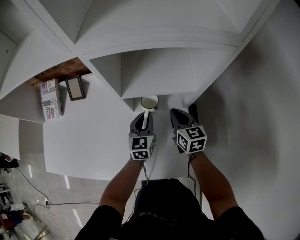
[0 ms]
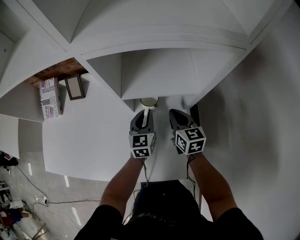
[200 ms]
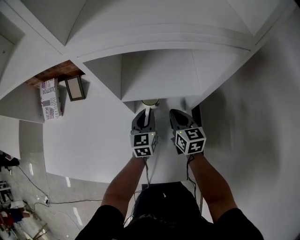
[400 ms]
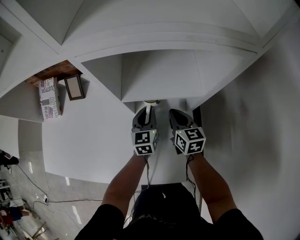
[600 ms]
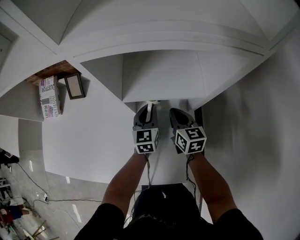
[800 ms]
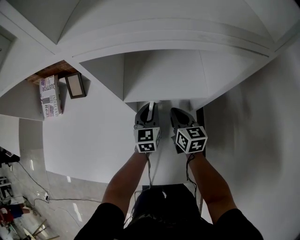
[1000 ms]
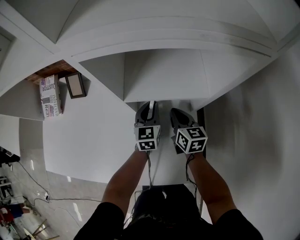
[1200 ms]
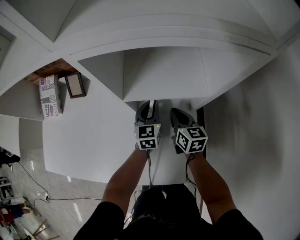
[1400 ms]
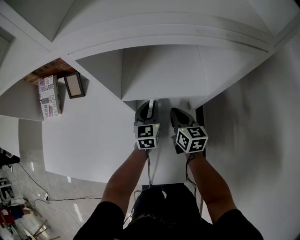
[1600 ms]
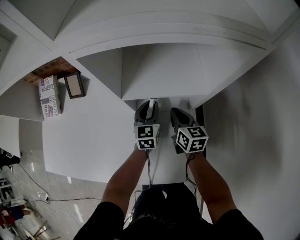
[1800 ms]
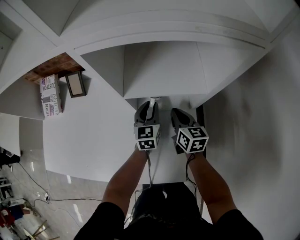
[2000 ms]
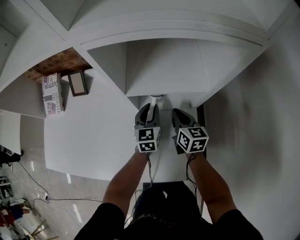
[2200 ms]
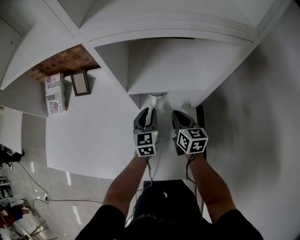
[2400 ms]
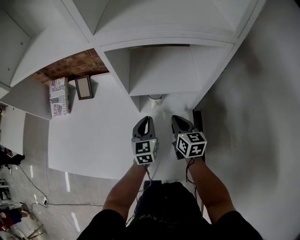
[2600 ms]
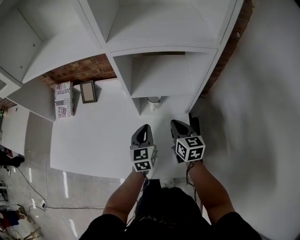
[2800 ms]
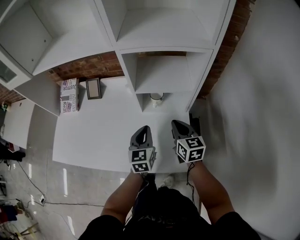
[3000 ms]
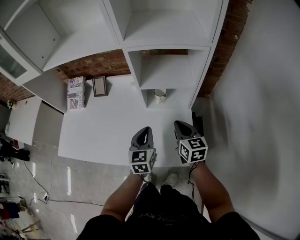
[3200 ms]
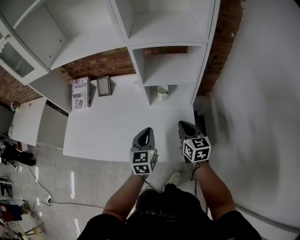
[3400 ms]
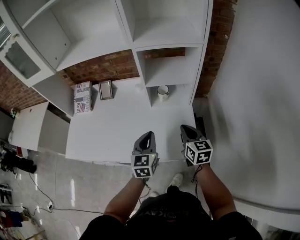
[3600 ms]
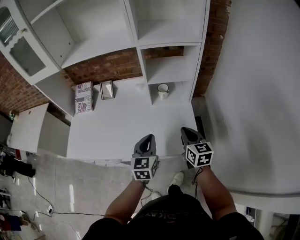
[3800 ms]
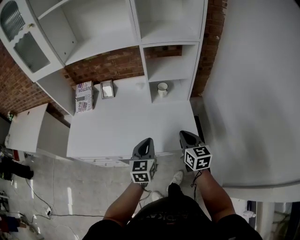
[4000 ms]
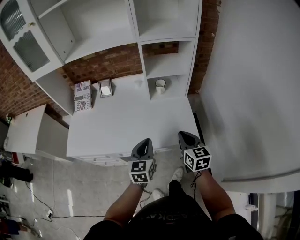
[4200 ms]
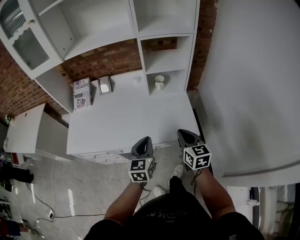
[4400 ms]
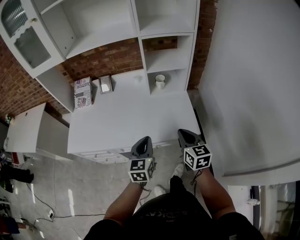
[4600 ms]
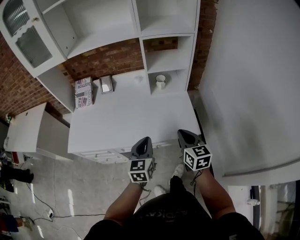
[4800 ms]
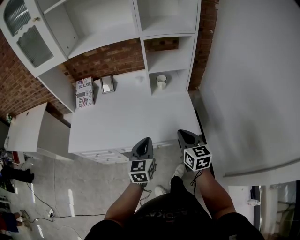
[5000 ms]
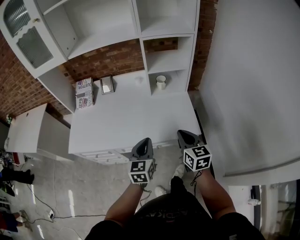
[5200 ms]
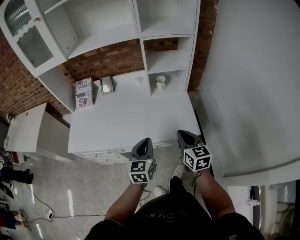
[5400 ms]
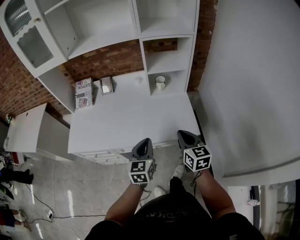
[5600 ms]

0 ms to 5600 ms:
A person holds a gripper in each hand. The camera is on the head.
0 ms to 1400 ms: The right gripper ends up some 5 cm from where it was; the left gripper shifts some 5 cm forward.
1400 ms to 2800 ms: The two grippers go some 15 cm backward and upward.
2800 ms to 4200 ms: The right gripper shifts roughly 30 cm backward, while the left gripper shifts about 30 cm backward and to the left.
4200 ms to 5600 ms: The grippers stay close to where they were, moving slightly.

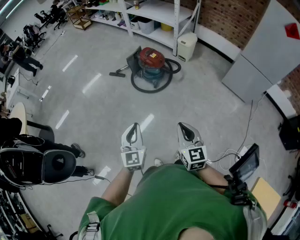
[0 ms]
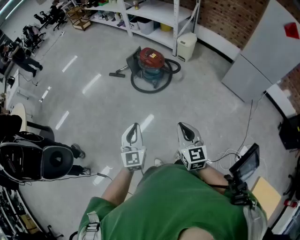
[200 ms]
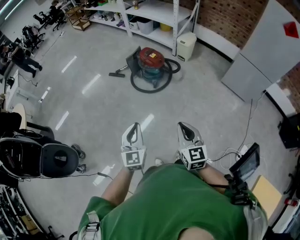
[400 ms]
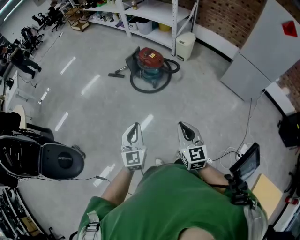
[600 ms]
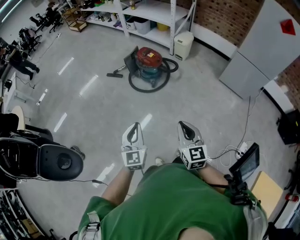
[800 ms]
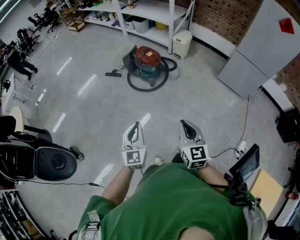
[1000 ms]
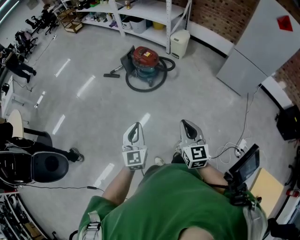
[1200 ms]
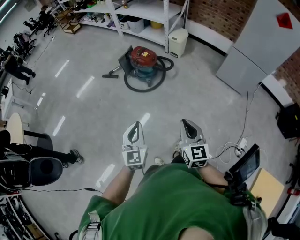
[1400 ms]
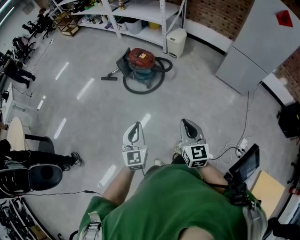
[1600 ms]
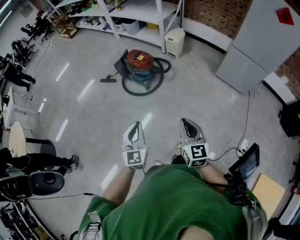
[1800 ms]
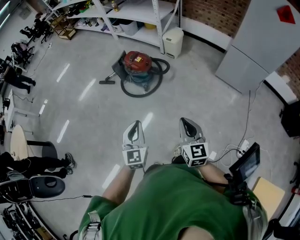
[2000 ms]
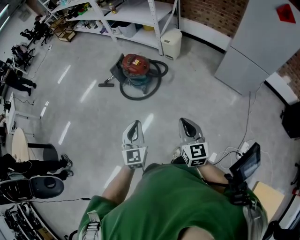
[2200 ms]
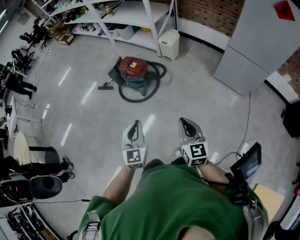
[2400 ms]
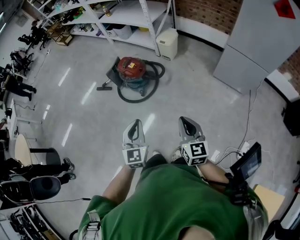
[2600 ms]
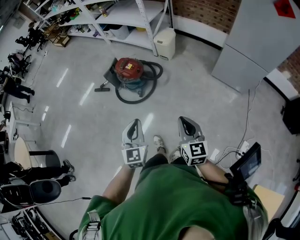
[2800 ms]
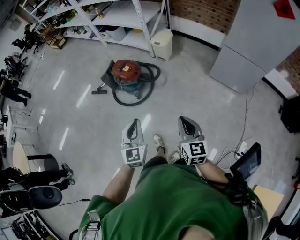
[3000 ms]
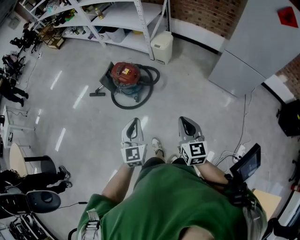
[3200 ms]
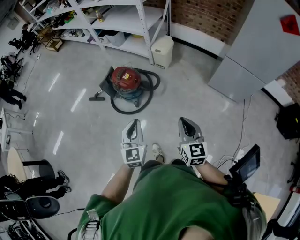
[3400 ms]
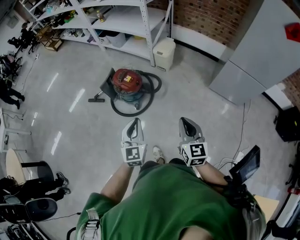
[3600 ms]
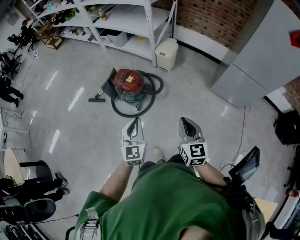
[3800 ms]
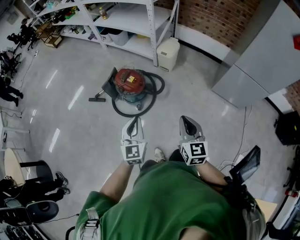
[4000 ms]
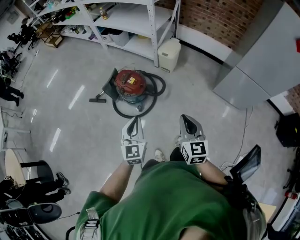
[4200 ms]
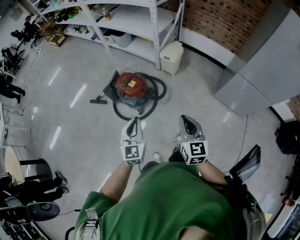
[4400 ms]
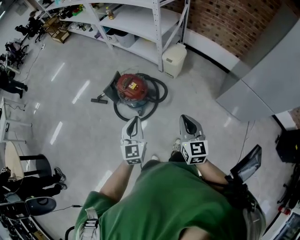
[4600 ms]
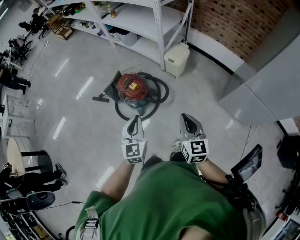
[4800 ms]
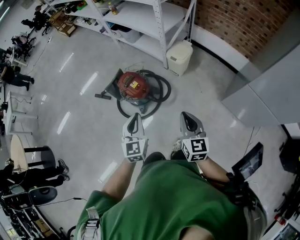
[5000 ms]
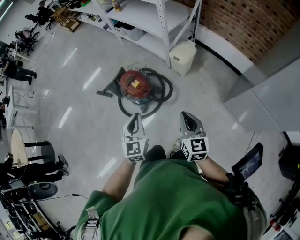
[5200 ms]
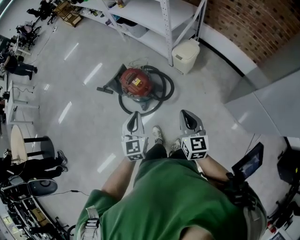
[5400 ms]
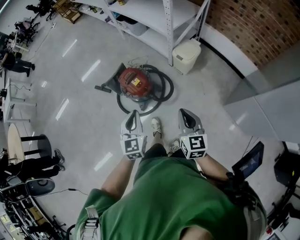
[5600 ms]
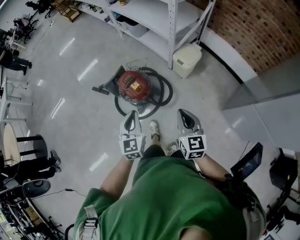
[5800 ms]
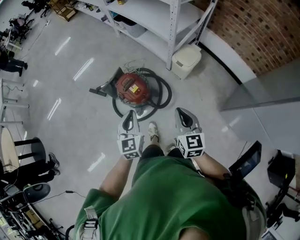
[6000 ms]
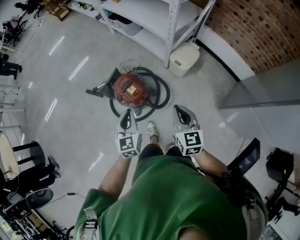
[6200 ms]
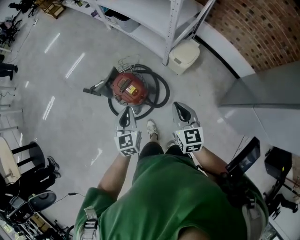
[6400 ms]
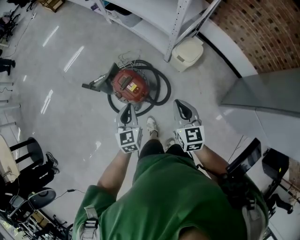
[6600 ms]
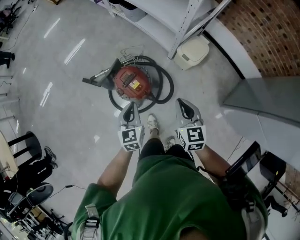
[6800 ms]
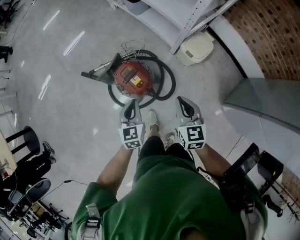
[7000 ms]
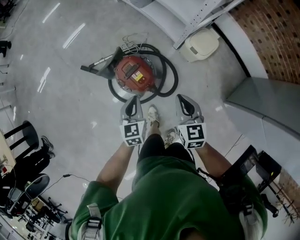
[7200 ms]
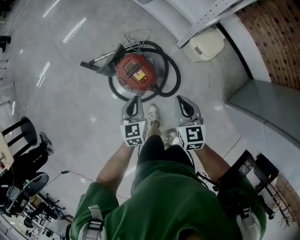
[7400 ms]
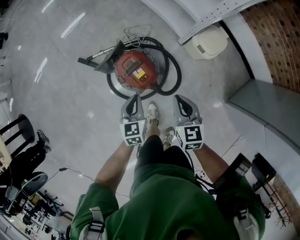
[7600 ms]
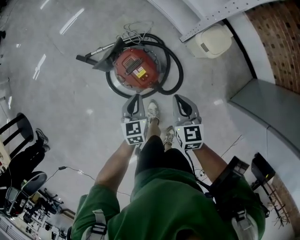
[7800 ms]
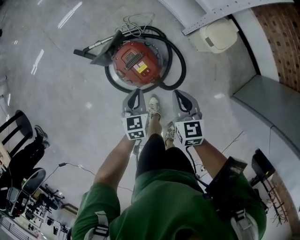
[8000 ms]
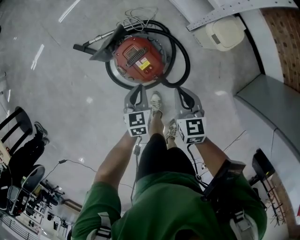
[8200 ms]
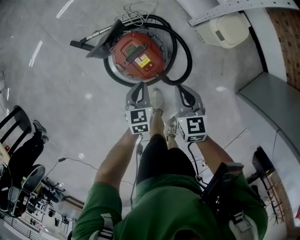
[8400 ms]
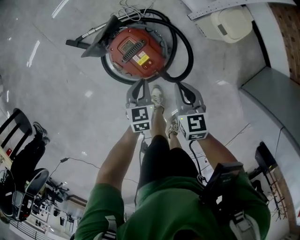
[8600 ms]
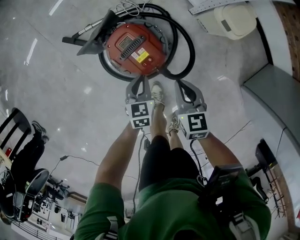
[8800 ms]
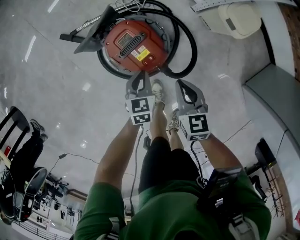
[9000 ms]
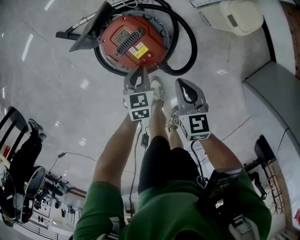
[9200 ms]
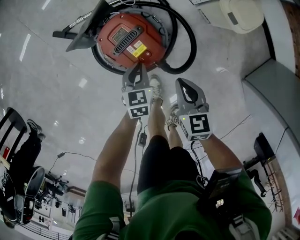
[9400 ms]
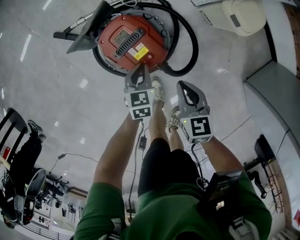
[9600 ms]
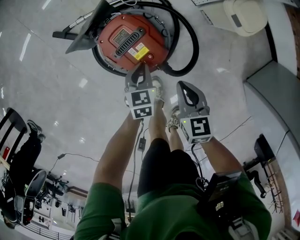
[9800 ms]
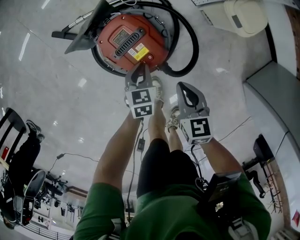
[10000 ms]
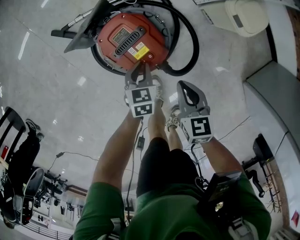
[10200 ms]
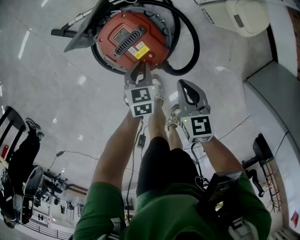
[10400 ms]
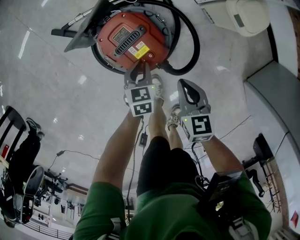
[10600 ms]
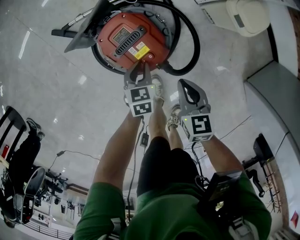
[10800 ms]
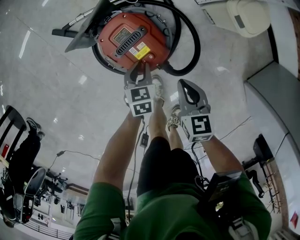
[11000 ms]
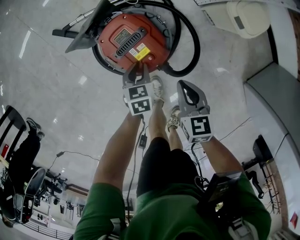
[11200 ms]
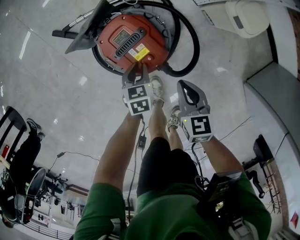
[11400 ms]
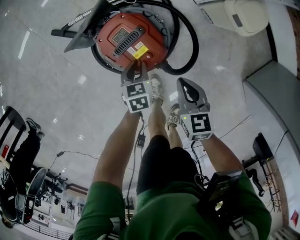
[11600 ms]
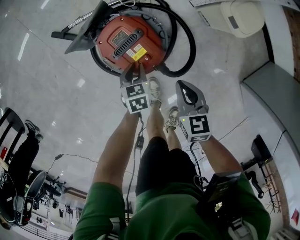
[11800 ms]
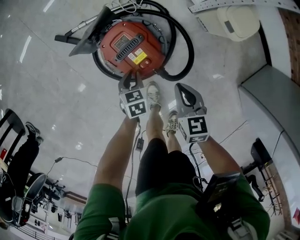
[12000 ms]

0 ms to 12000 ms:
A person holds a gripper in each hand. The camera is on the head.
0 ms to 1600 ms: The grippers both shift to the right by about 5 cm.
1600 ms to 3000 ms: Both grippers move forward and to the right, approximately 25 cm.
3000 ms to 4400 ms: Both grippers move forward, approximately 20 cm.
4400 ms to 6000 ms: Both grippers travel together forward, about 25 cm.
6000 ms to 7600 ms: The left gripper moves downward and forward, approximately 25 cm, and turns by approximately 20 degrees. The right gripper heads forward, downward and to the left, covering roughly 25 cm.
7600 ms to 9000 ms: Both grippers move downward, some 20 cm.
9000 ms to 10400 ms: The left gripper moves downward, approximately 5 cm.
10400 ms to 12000 ms: The grippers make only small movements.

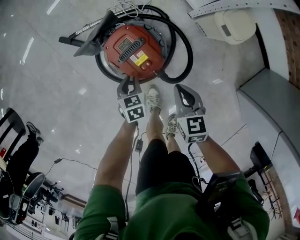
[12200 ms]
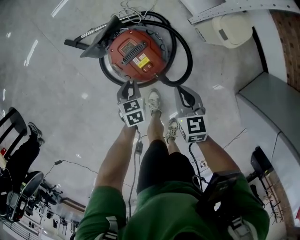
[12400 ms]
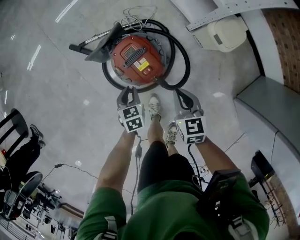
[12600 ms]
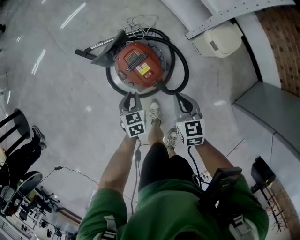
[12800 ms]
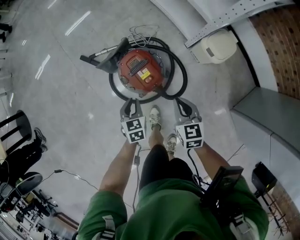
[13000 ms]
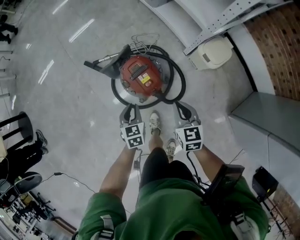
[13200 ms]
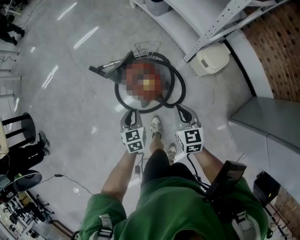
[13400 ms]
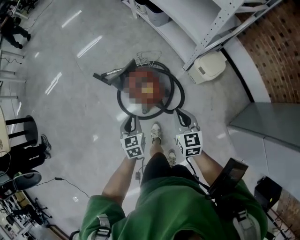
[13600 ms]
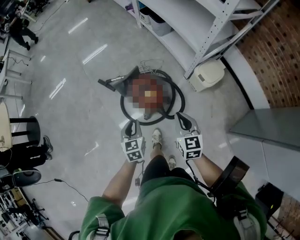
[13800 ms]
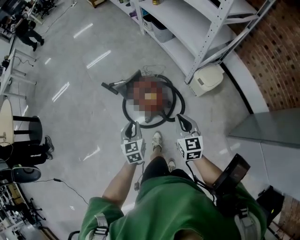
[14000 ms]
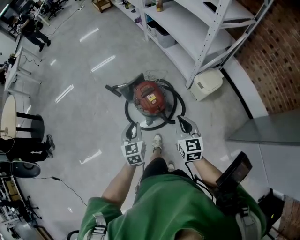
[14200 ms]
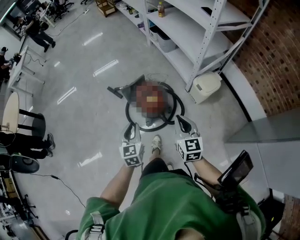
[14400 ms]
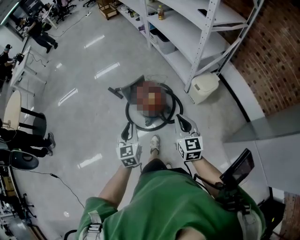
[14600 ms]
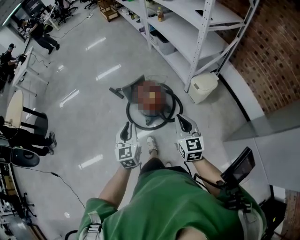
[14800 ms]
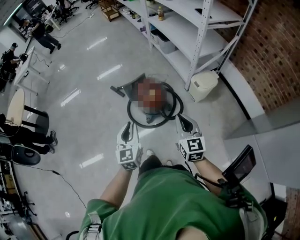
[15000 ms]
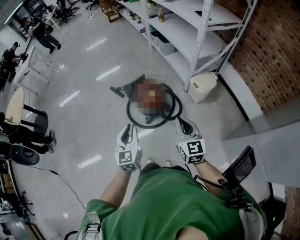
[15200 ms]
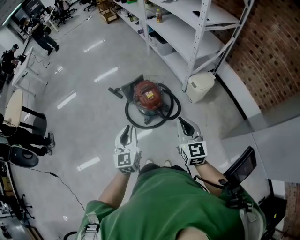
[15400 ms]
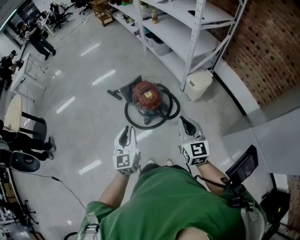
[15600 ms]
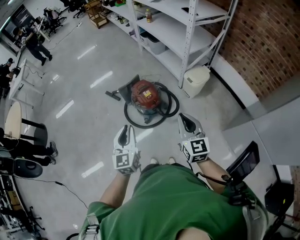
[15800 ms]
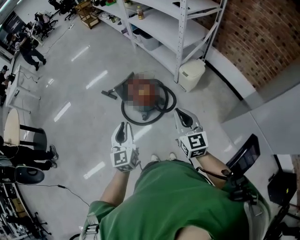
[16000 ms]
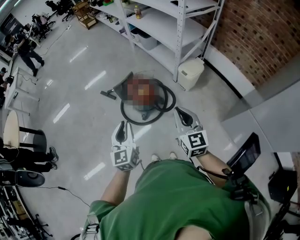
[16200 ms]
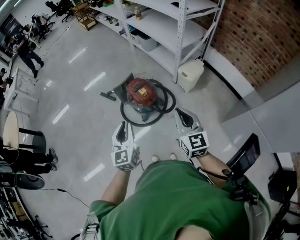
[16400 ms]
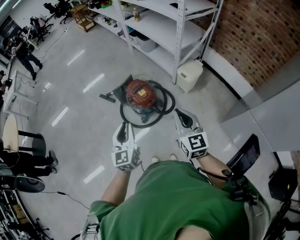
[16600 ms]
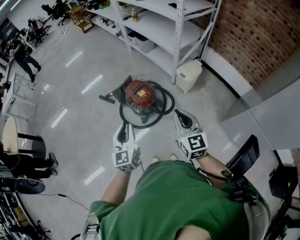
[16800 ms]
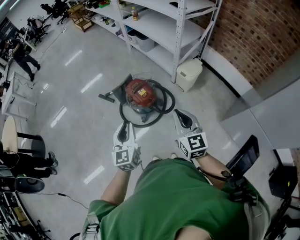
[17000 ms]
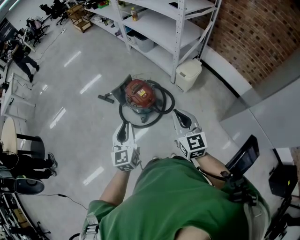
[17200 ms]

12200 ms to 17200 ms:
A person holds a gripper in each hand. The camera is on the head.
12200 ms to 13800 ms: Both grippers move upward, about 30 cm. The left gripper changes its angle by about 30 degrees. Meanwhile the right gripper changes its angle by about 20 degrees.
13800 ms to 15600 ms: Both grippers move backward and upward, roughly 30 cm. The left gripper rotates some 30 degrees.
15600 ms to 17200 ms: The grippers stay close to where they were, moving slightly.

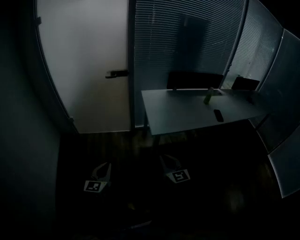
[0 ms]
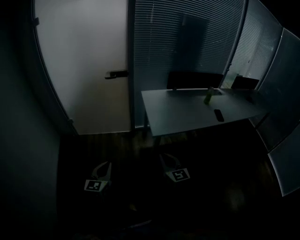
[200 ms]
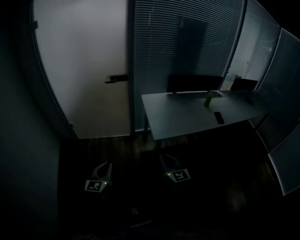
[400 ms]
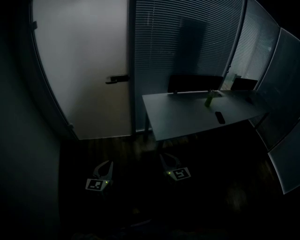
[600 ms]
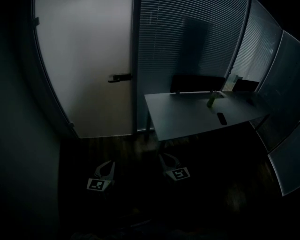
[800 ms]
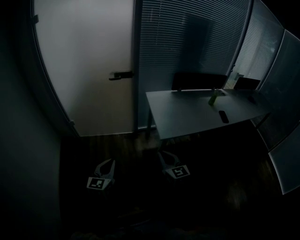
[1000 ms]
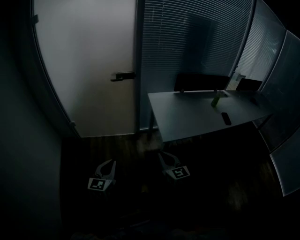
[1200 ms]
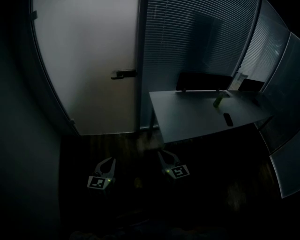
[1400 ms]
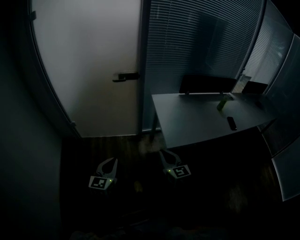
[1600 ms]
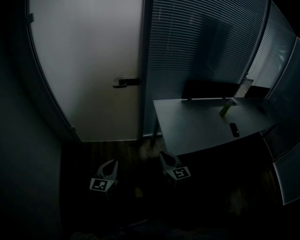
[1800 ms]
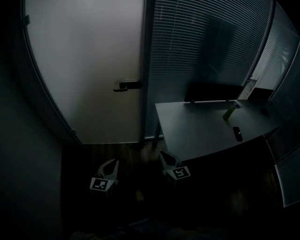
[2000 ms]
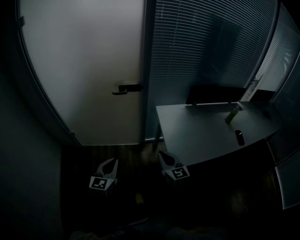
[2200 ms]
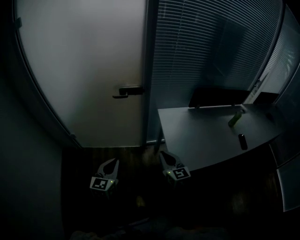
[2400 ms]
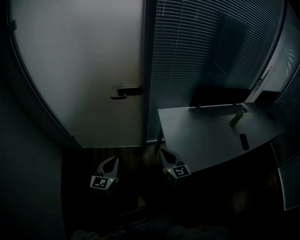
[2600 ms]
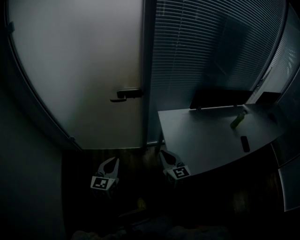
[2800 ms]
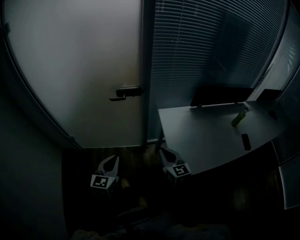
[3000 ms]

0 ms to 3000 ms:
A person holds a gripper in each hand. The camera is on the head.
0 ms to 1600 ms: The left gripper goes roughly 15 cm forward; the right gripper shifts roughly 20 cm forward and to the left.
1600 ms to 3000 ms: The grippers both shift forward by about 25 cm.
